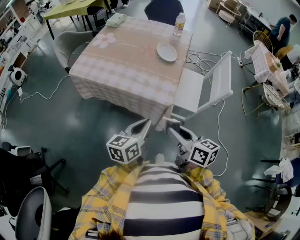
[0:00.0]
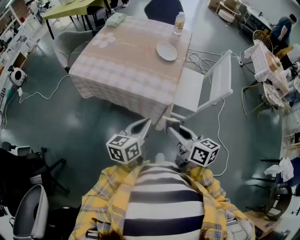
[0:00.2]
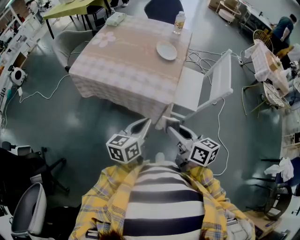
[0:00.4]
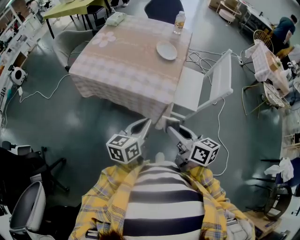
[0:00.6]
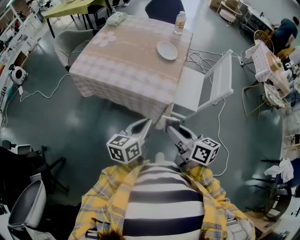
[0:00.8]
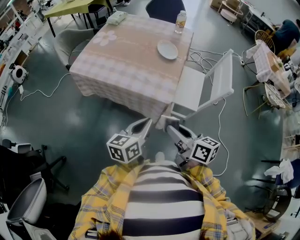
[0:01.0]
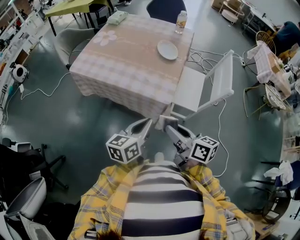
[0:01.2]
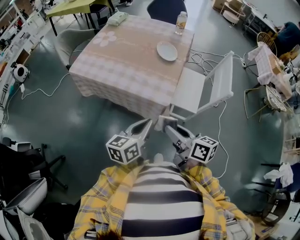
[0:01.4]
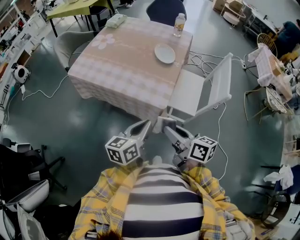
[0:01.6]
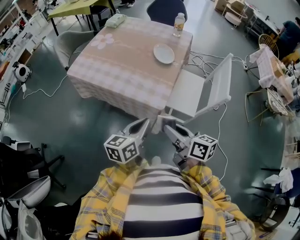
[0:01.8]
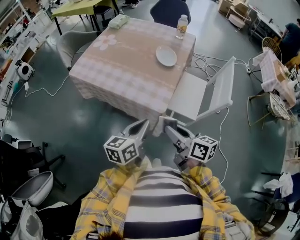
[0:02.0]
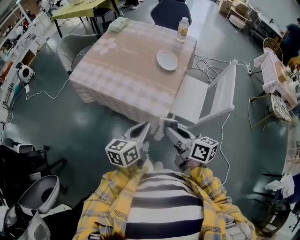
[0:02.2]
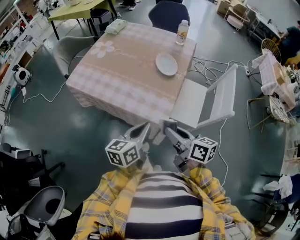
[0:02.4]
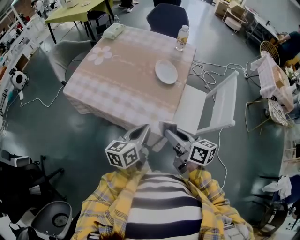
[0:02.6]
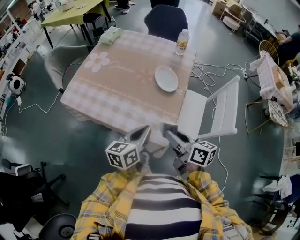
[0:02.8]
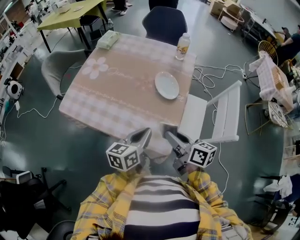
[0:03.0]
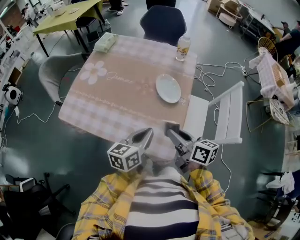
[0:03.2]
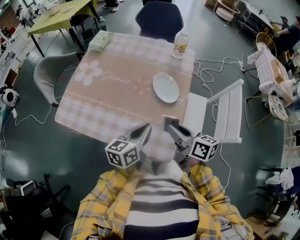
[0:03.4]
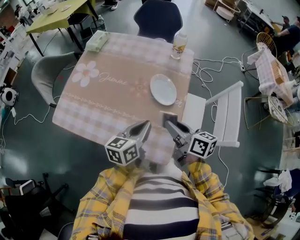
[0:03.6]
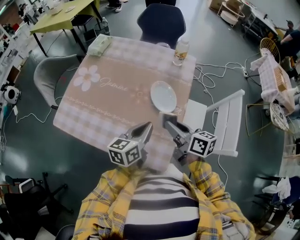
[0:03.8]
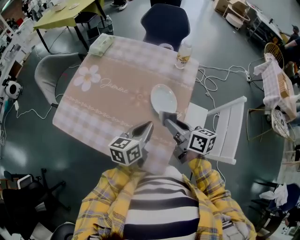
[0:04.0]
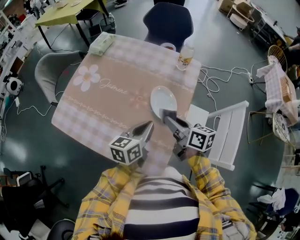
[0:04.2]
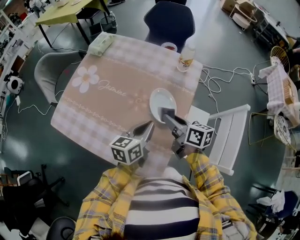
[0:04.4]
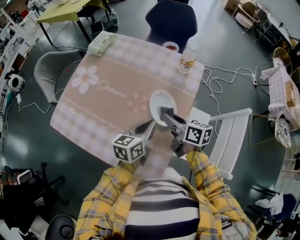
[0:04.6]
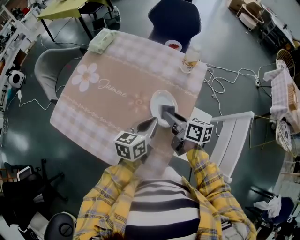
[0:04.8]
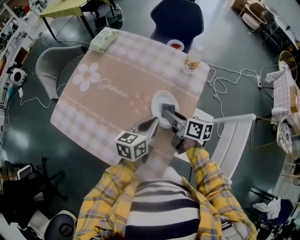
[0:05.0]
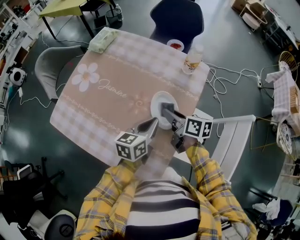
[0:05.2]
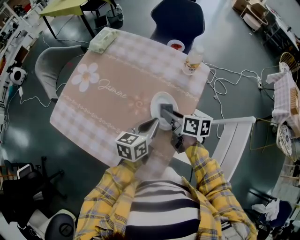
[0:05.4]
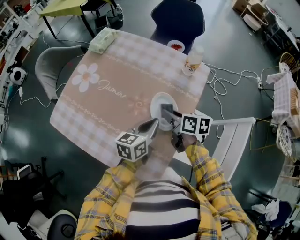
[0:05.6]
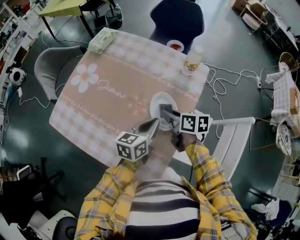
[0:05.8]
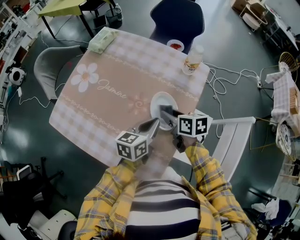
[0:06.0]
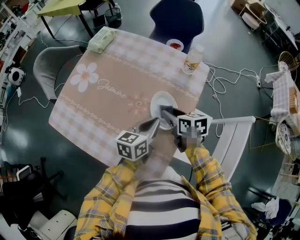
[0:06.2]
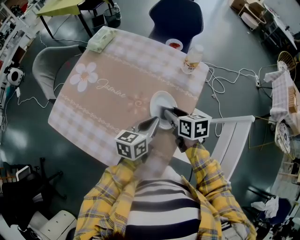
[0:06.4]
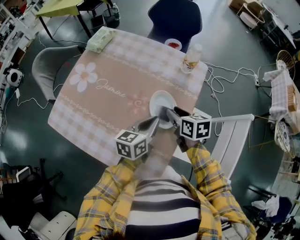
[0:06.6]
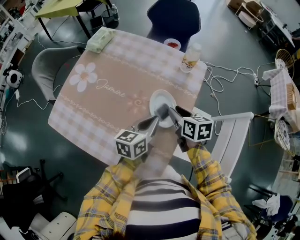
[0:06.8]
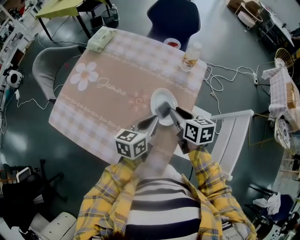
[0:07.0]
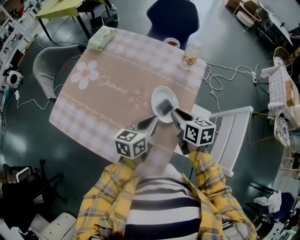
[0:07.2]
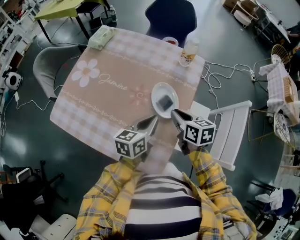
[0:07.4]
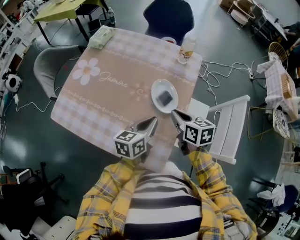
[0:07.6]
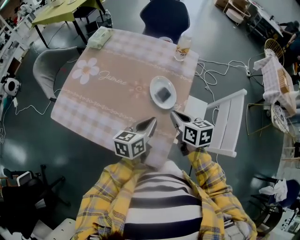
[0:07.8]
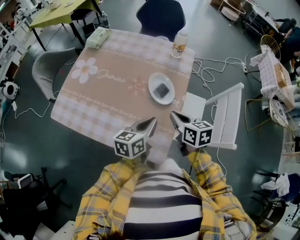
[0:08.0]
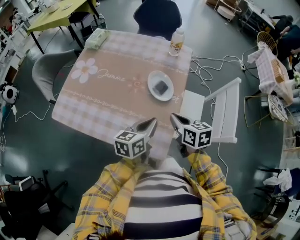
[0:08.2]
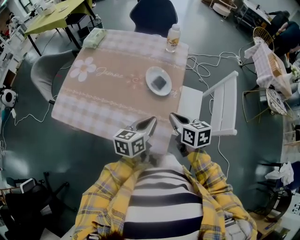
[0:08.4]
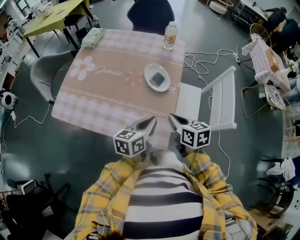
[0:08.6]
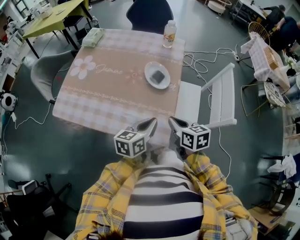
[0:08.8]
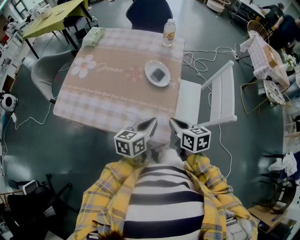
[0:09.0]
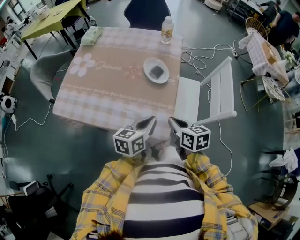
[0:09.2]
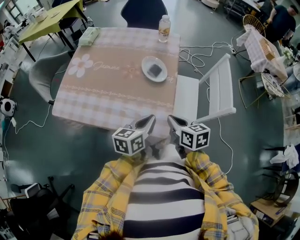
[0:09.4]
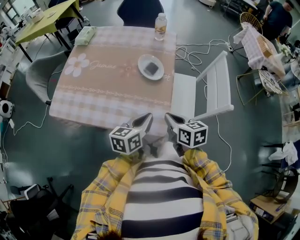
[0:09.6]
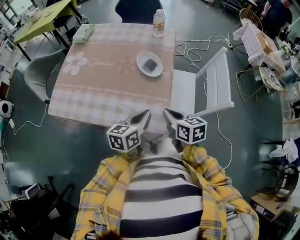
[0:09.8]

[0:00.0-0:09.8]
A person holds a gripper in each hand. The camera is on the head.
0:00.0 to 0:01.4: There are only small adjustments of the grippers.
0:01.4 to 0:02.8: The grippers both shift forward by approximately 15 cm.
0:02.8 to 0:04.2: Both grippers travel together forward, some 20 cm.
0:04.2 to 0:05.6: The left gripper heads forward, covering approximately 5 cm. Meanwhile the right gripper goes some 10 cm forward and downward.
0:05.6 to 0:07.0: The right gripper changes its angle by approximately 20 degrees.
0:07.0 to 0:08.4: Both grippers move backward, about 15 cm. The right gripper closes its fingers.
0:08.4 to 0:09.8: Both grippers move backward, some 5 cm.

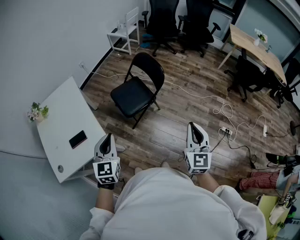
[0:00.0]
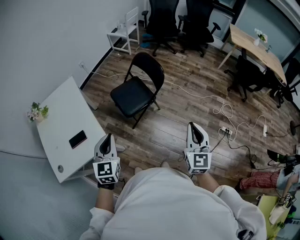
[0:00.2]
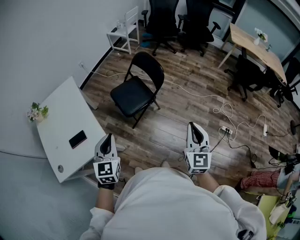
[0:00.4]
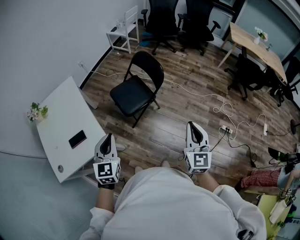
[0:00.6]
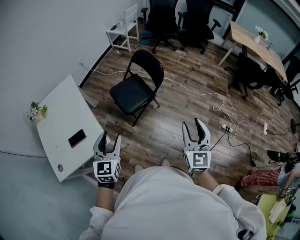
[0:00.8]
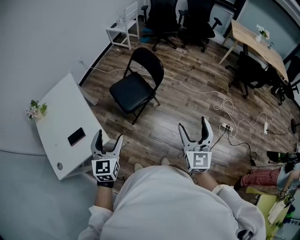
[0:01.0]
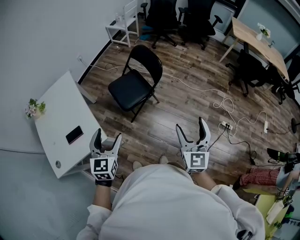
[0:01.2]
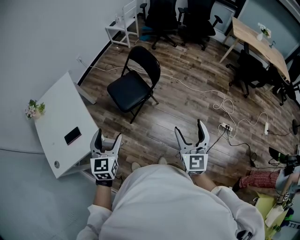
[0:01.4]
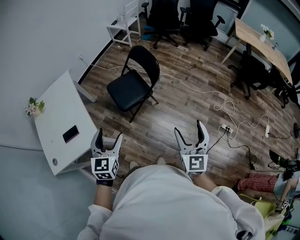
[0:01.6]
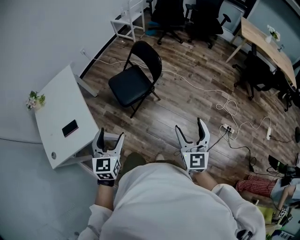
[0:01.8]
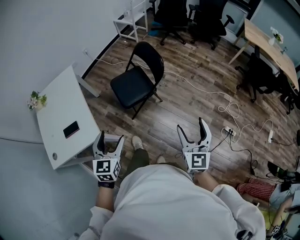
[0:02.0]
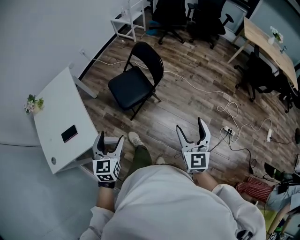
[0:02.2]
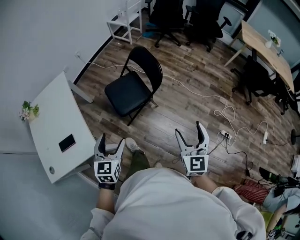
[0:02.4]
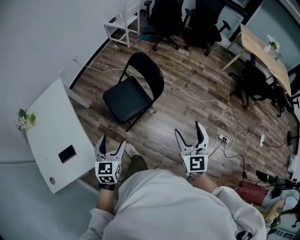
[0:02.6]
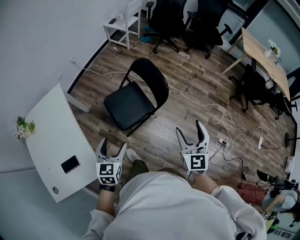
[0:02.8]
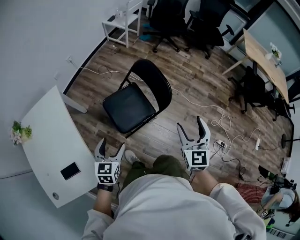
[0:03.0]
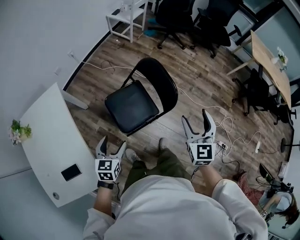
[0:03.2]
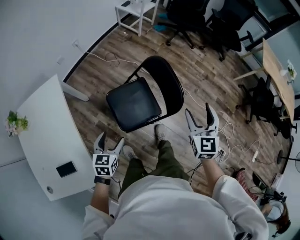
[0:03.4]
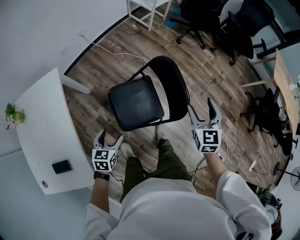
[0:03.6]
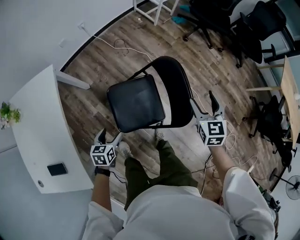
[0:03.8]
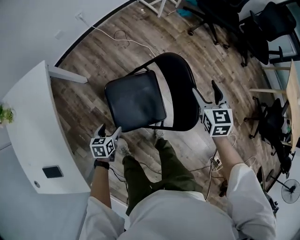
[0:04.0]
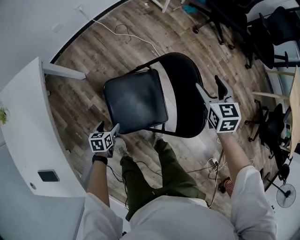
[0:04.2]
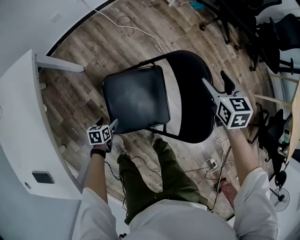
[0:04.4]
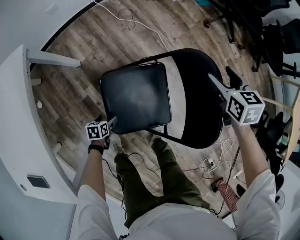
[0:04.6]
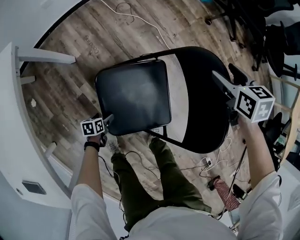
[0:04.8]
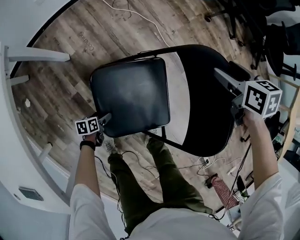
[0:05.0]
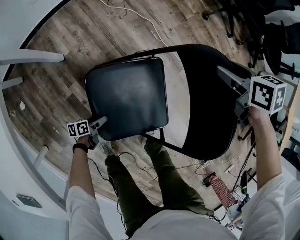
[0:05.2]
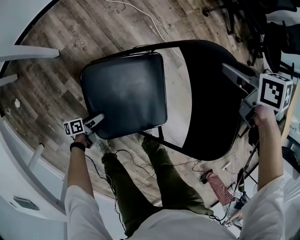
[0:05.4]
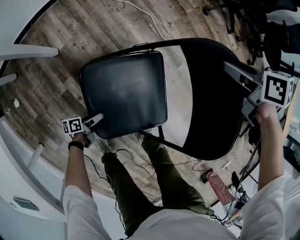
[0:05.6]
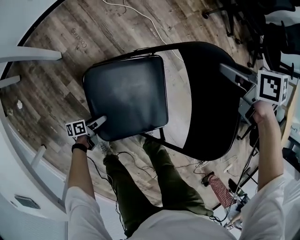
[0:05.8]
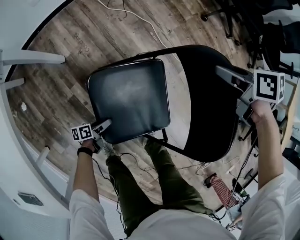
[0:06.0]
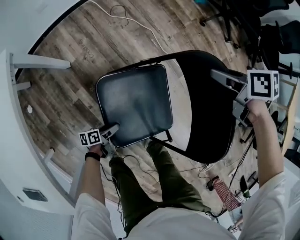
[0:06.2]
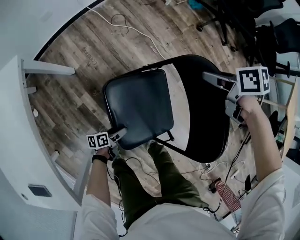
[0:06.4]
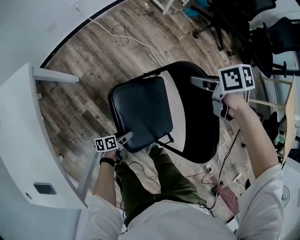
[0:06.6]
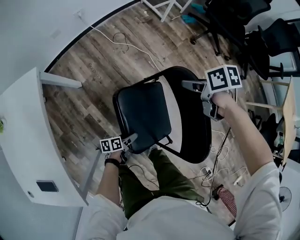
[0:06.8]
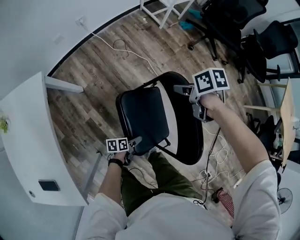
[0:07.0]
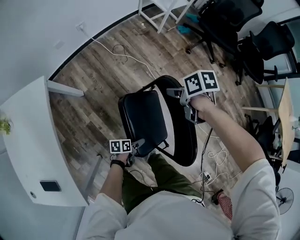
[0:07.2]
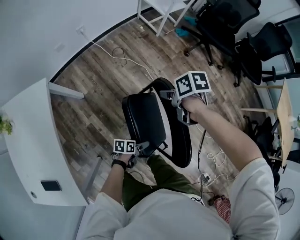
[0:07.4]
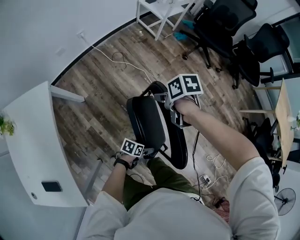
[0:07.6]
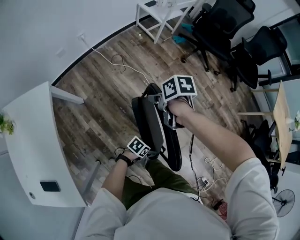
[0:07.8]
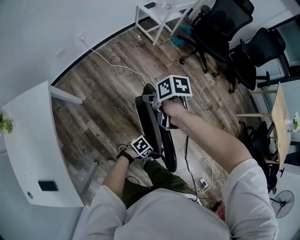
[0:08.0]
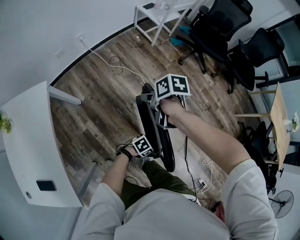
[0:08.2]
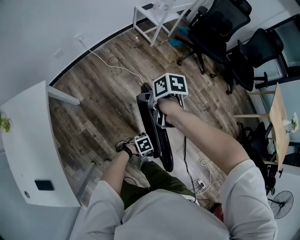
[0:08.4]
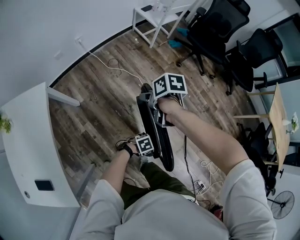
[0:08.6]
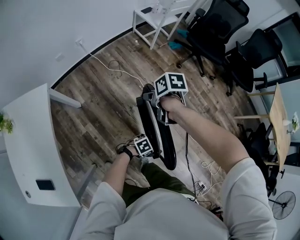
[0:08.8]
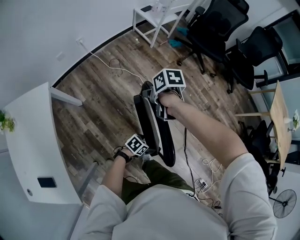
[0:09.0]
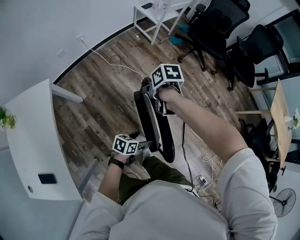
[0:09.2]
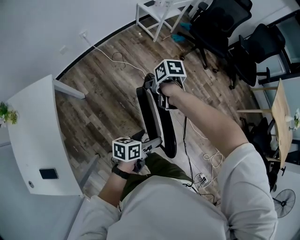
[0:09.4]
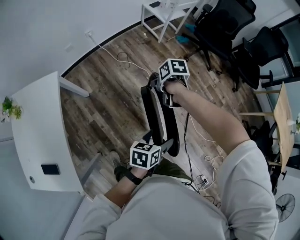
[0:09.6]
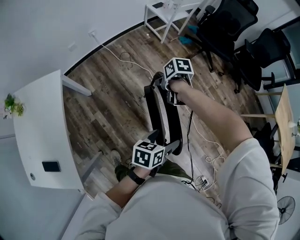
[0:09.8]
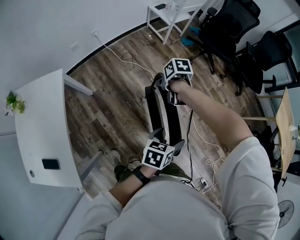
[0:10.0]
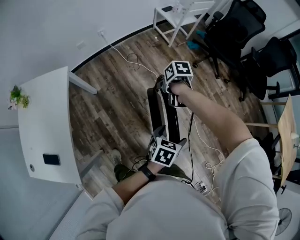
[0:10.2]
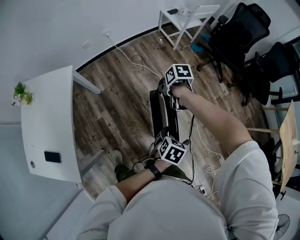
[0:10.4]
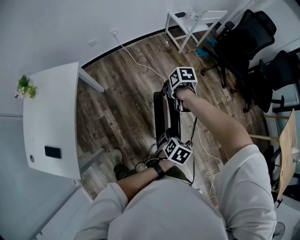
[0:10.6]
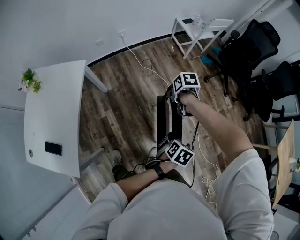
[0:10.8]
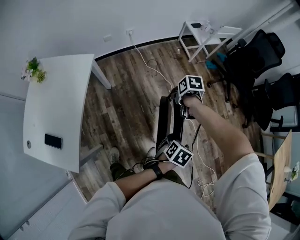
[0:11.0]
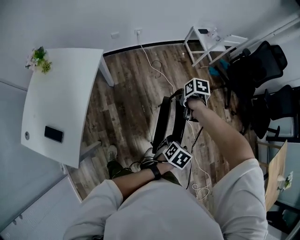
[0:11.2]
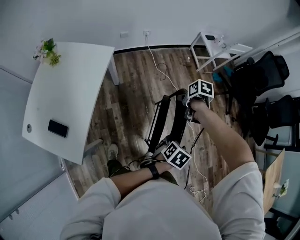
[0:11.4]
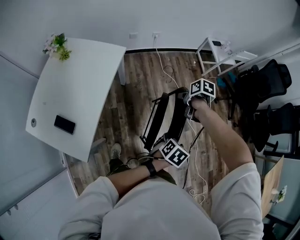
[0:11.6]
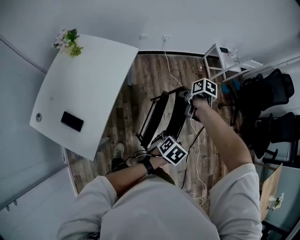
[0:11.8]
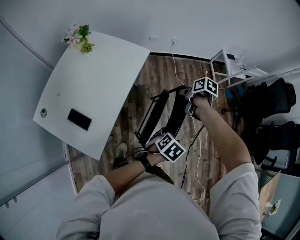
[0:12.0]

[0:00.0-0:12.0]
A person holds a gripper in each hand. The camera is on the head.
0:00.0 to 0:01.6: Both grippers travel together to the right, roughly 10 cm. The left gripper opens; the right gripper opens up.
0:01.6 to 0:03.0: The right gripper heads forward, covering approximately 35 cm. The left gripper heads forward and downward, covering approximately 30 cm.
0:03.0 to 0:04.4: The left gripper shifts about 50 cm downward and forward, and tilts its fingers some 30 degrees downward, while the right gripper shifts about 60 cm forward and downward, and tilts its fingers some 30 degrees downward.
0:04.4 to 0:06.0: The right gripper travels downward and to the left by approximately 10 cm, changes its angle by some 40 degrees, and closes. The left gripper moves downward, about 15 cm, and turns by some 40 degrees.
0:06.0 to 0:07.6: The right gripper shifts about 15 cm upward. Meanwhile the left gripper is displaced upward by about 30 cm, and rotates some 40 degrees.
0:07.6 to 0:09.0: The left gripper changes place by approximately 10 cm, and changes its angle by about 30 degrees.
0:09.0 to 0:10.4: The left gripper heads upward, covering some 20 cm, and turns by some 40 degrees.
0:10.4 to 0:12.0: The left gripper ends up about 35 cm from where it was, and closes; the right gripper changes place by some 30 cm.

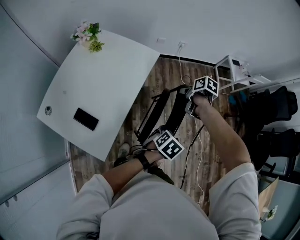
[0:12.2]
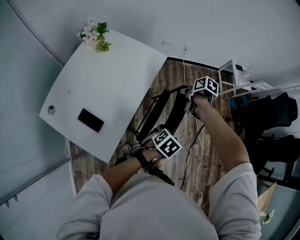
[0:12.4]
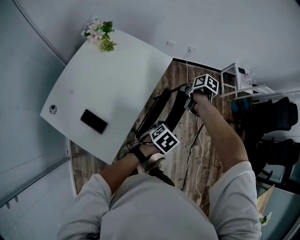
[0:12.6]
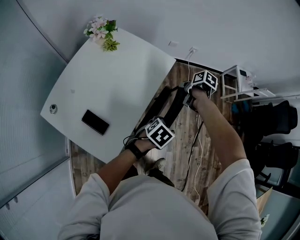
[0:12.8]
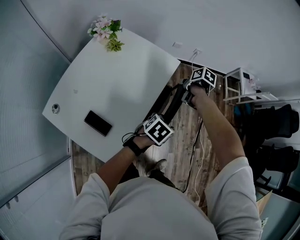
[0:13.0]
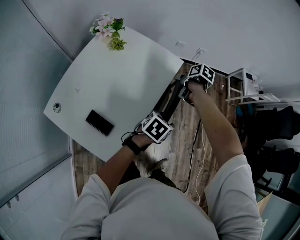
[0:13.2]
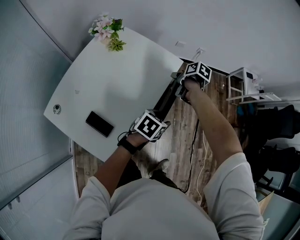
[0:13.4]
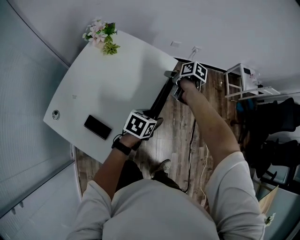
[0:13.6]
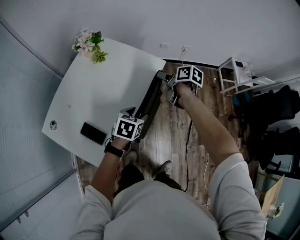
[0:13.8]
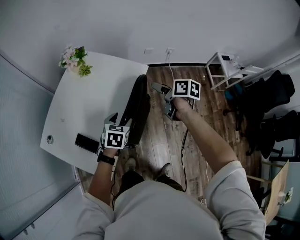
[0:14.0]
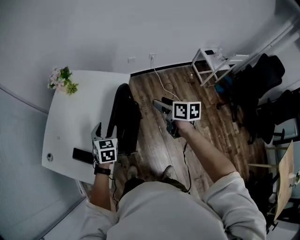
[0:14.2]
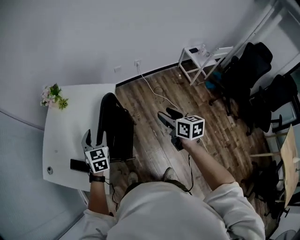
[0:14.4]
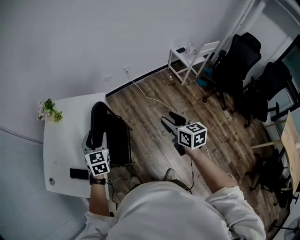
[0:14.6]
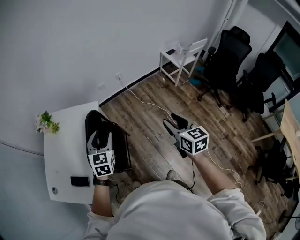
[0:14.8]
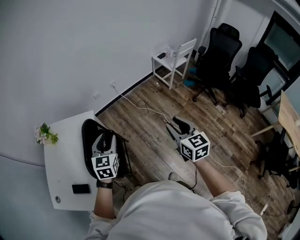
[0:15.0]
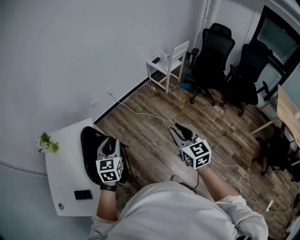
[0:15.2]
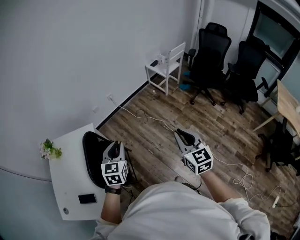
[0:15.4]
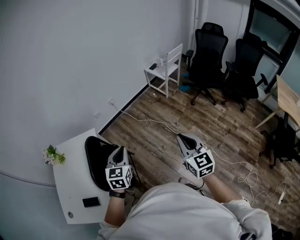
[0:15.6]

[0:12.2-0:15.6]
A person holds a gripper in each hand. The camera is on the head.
0:12.2 to 0:13.8: Both grippers move to the left and forward, roughly 25 cm. The right gripper swivels approximately 20 degrees, and opens up, while the left gripper turns by some 20 degrees.
0:13.8 to 0:15.6: The right gripper moves approximately 60 cm, angles its fingers upward, by about 30 degrees, and closes its fingers. Meanwhile the left gripper moves approximately 35 cm, swivels some 40 degrees, and closes.
